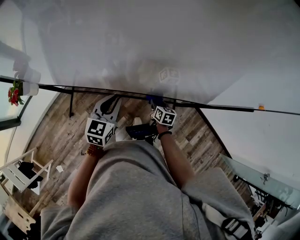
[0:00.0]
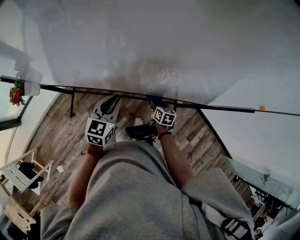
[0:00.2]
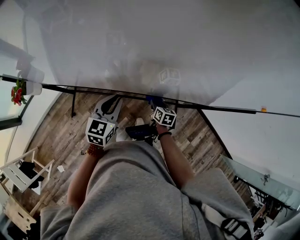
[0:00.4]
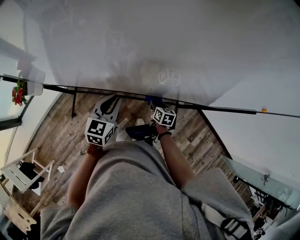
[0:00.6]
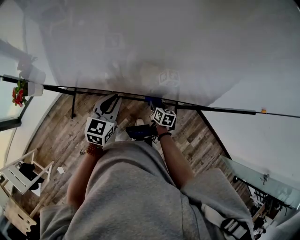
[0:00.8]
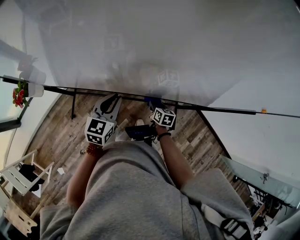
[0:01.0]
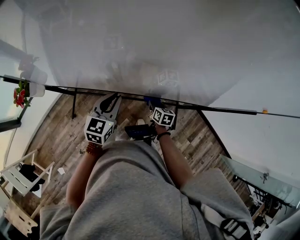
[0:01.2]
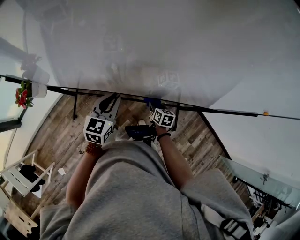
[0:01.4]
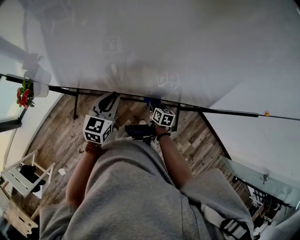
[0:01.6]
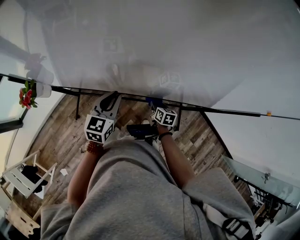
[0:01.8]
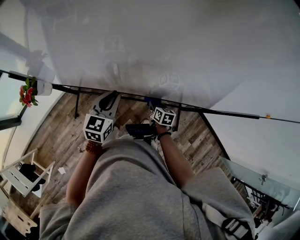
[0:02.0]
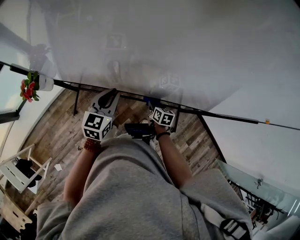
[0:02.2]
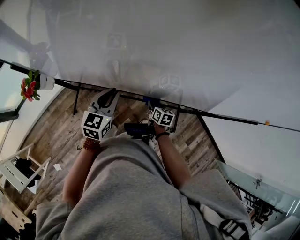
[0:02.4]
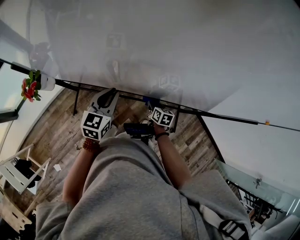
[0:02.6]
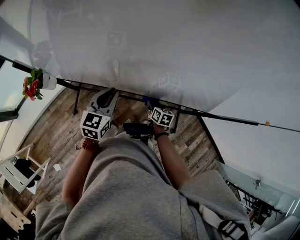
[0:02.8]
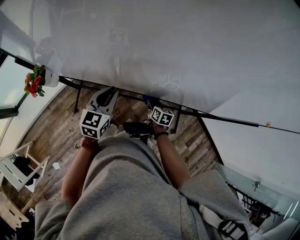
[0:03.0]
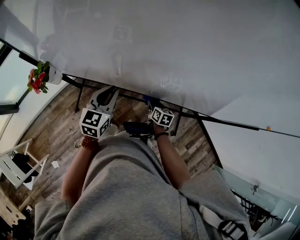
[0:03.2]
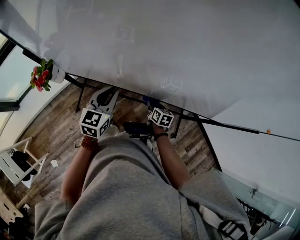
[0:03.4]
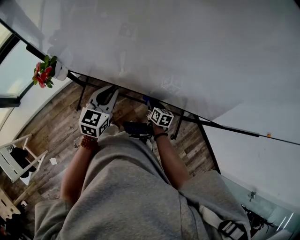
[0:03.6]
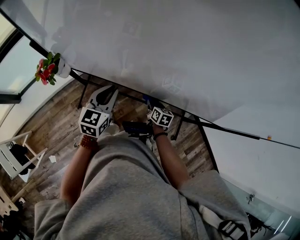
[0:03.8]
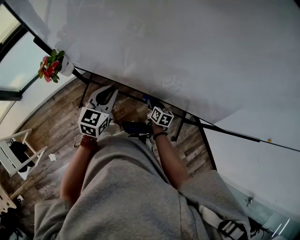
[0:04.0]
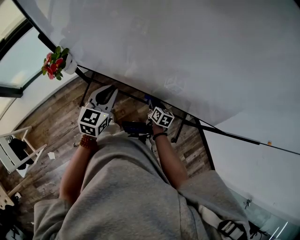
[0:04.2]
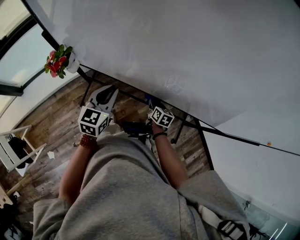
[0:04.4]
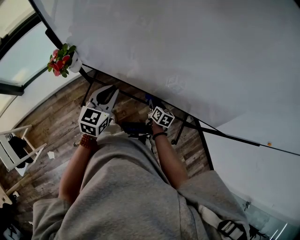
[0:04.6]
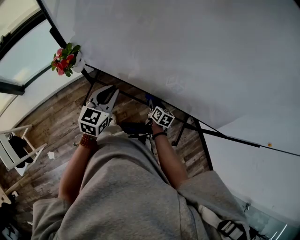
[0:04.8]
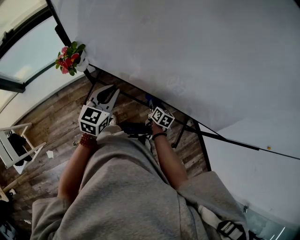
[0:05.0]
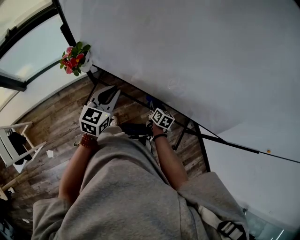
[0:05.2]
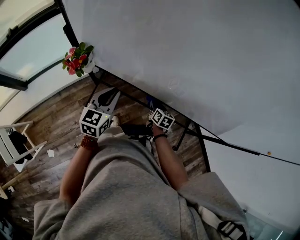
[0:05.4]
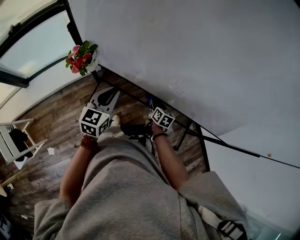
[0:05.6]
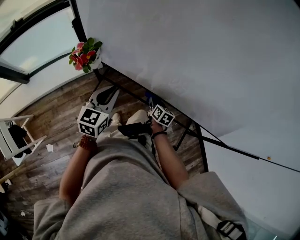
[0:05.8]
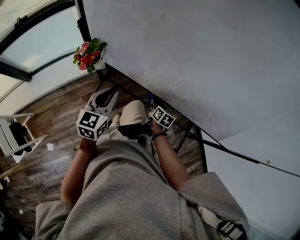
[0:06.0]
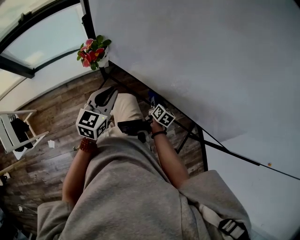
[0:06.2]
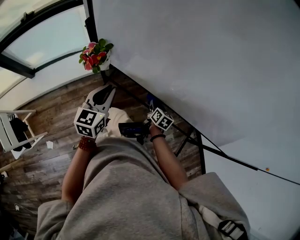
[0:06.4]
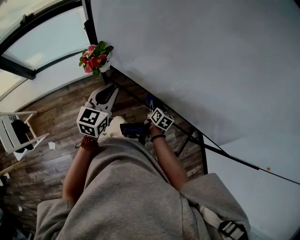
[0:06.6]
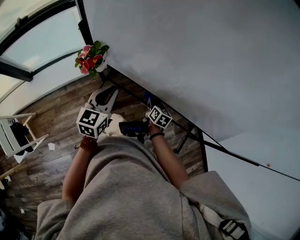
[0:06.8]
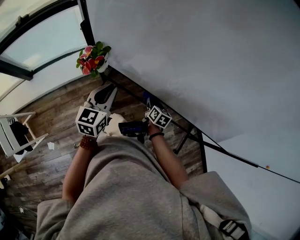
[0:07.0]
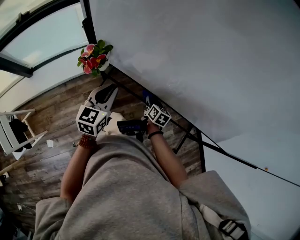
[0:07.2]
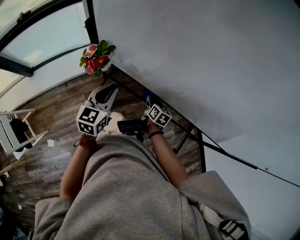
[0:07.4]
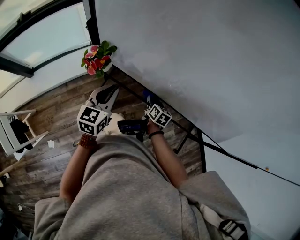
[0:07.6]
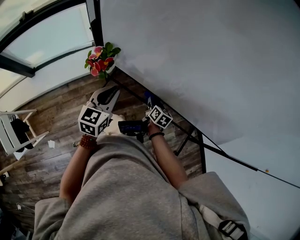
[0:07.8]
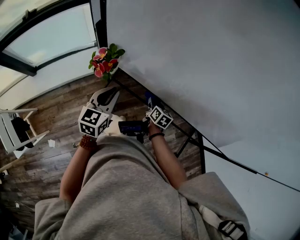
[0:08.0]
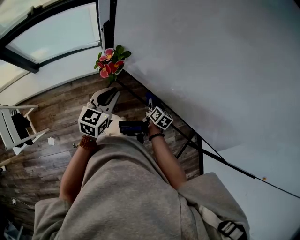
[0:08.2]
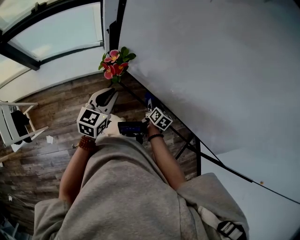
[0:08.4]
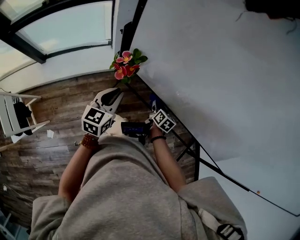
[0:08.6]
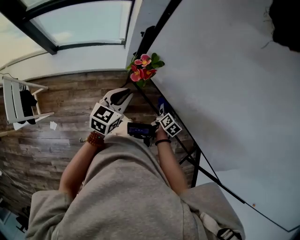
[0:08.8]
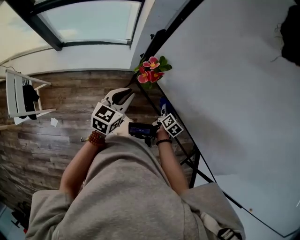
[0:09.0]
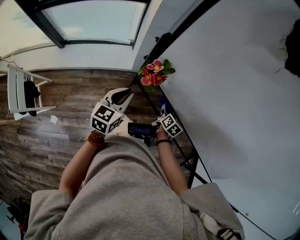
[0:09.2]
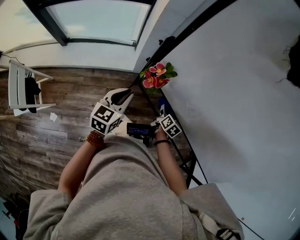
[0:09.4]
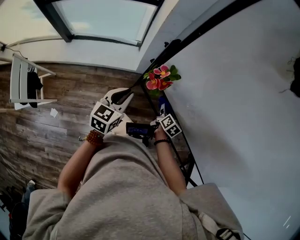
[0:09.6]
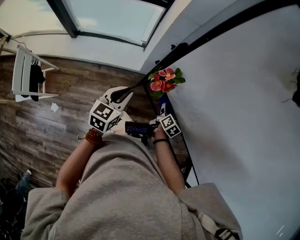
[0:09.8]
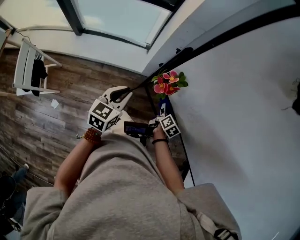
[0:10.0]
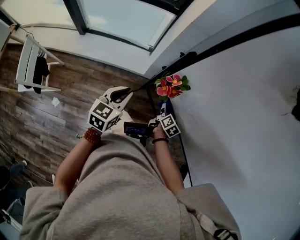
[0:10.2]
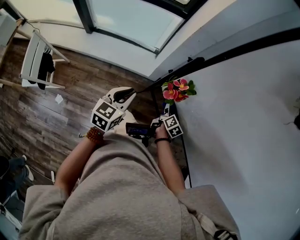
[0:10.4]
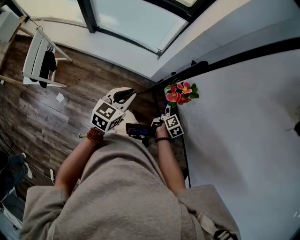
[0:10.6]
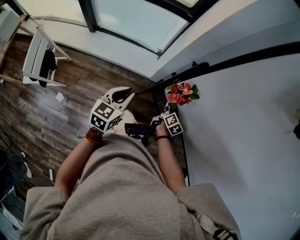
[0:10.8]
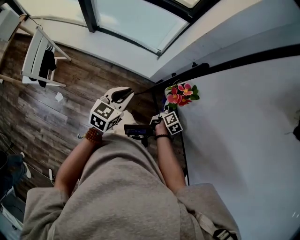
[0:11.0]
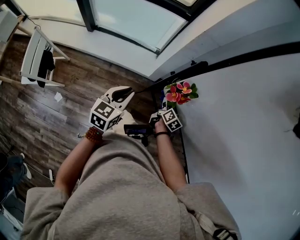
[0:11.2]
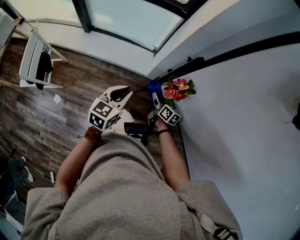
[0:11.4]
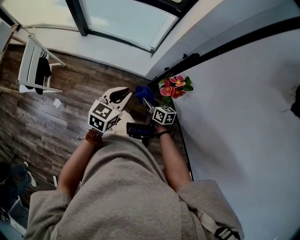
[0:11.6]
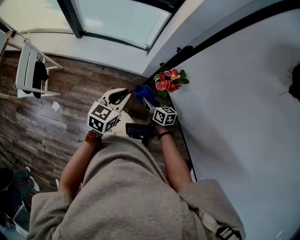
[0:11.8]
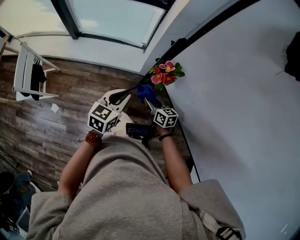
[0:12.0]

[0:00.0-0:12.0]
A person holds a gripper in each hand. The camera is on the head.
0:00.0 to 0:01.6: The two grippers go roughly 10 cm to the left.
0:01.6 to 0:03.0: Both grippers travel together to the left, roughly 10 cm.
0:03.0 to 0:04.4: Both grippers move to the left, about 10 cm.
0:04.4 to 0:06.0: The grippers both shift to the left by about 10 cm.
0:06.0 to 0:07.6: The right gripper goes roughly 5 cm to the left. Meanwhile the left gripper shifts by some 5 cm.
0:07.6 to 0:09.0: The two grippers go some 10 cm to the left.
0:09.0 to 0:10.4: The left gripper shifts roughly 10 cm to the left; the right gripper moves to the left and forward, about 10 cm.
0:10.4 to 0:12.0: The right gripper ends up some 10 cm from where it was, and turns by about 50 degrees.

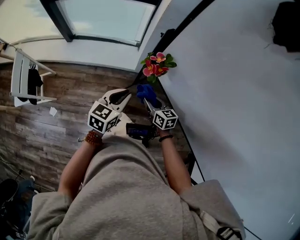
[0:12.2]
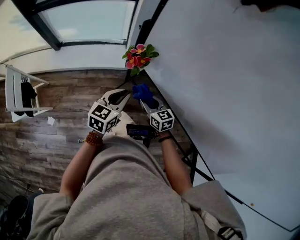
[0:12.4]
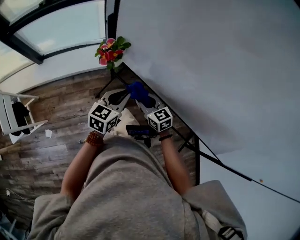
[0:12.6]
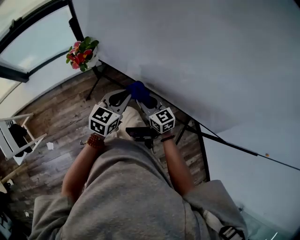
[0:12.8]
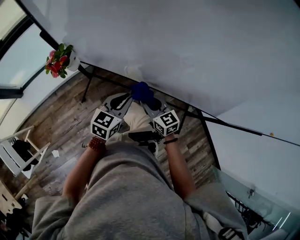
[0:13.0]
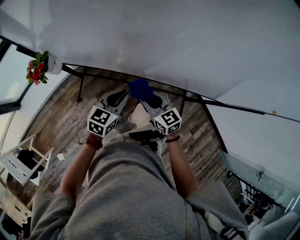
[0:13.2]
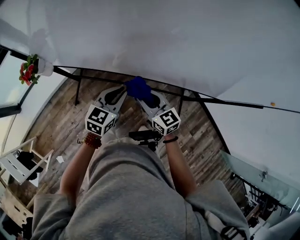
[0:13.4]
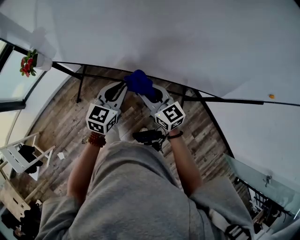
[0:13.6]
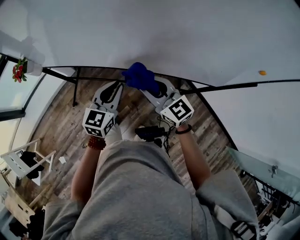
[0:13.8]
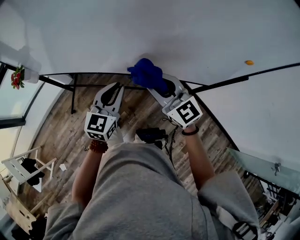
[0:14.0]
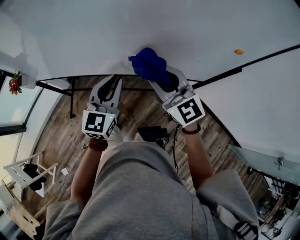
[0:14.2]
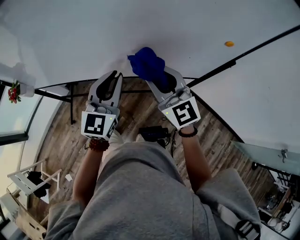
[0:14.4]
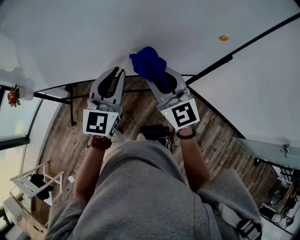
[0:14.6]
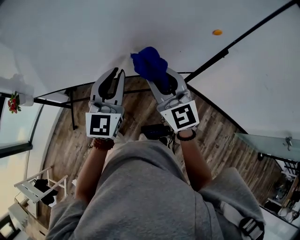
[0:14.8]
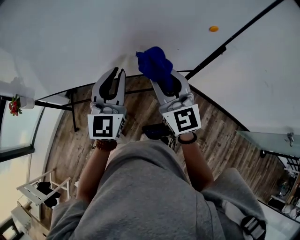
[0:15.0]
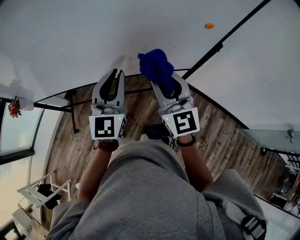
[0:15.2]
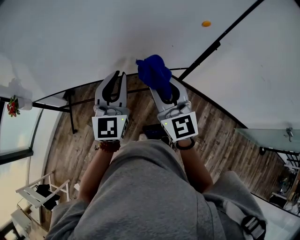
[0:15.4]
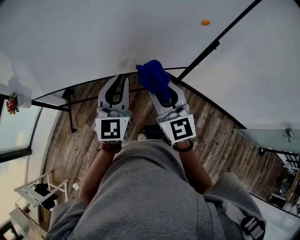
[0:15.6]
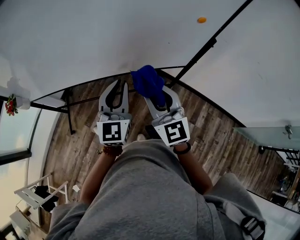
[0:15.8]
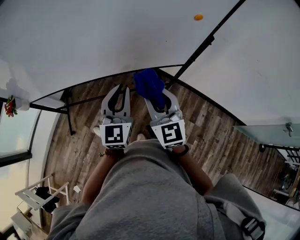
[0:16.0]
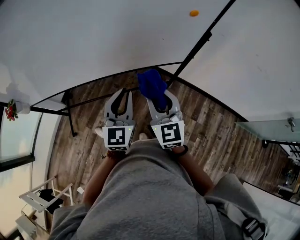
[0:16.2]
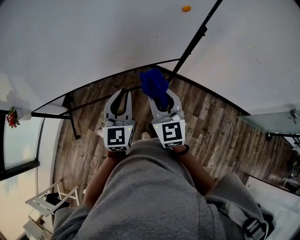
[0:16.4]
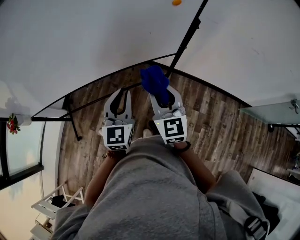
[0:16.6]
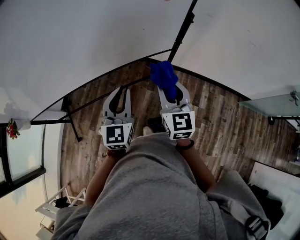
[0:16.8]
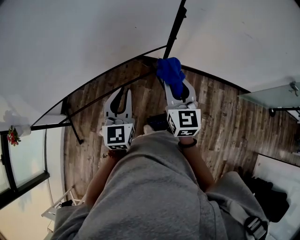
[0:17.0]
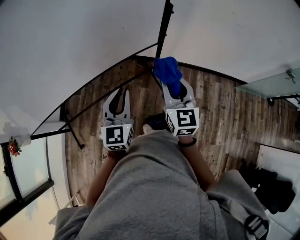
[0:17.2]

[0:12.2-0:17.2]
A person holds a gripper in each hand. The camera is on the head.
0:12.2 to 0:13.8: The pair of grippers is taken about 50 cm. The right gripper swivels roughly 40 degrees. The left gripper changes its angle by approximately 40 degrees.
0:13.8 to 0:15.6: The right gripper is displaced to the right, backward and upward by roughly 25 cm, and turns by some 40 degrees. The left gripper is displaced to the right and upward by roughly 20 cm, and swivels approximately 20 degrees.
0:15.6 to 0:17.2: The right gripper moves approximately 20 cm, and turns by about 40 degrees. The left gripper changes place by about 15 cm, and rotates some 20 degrees.

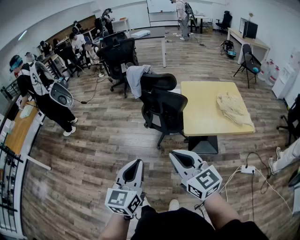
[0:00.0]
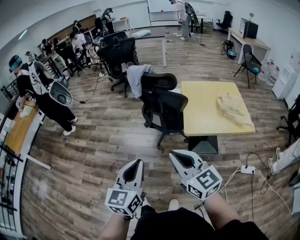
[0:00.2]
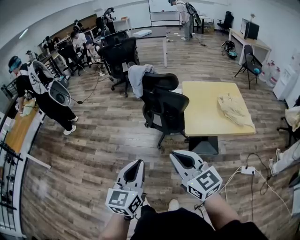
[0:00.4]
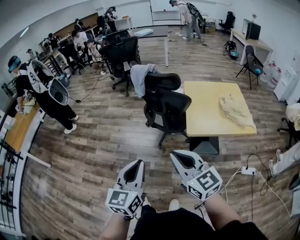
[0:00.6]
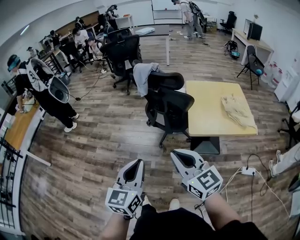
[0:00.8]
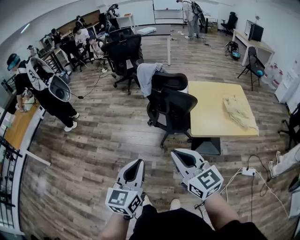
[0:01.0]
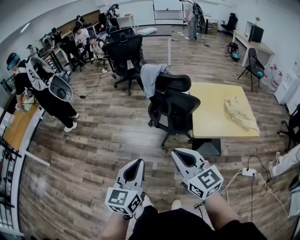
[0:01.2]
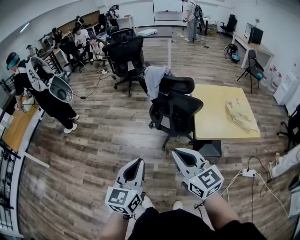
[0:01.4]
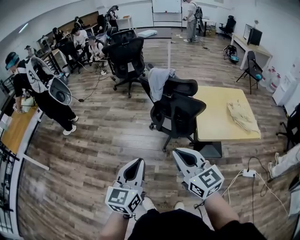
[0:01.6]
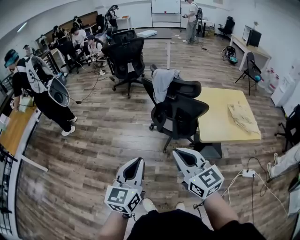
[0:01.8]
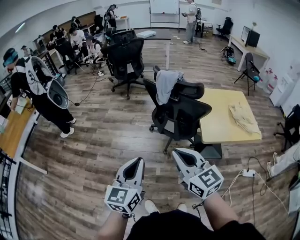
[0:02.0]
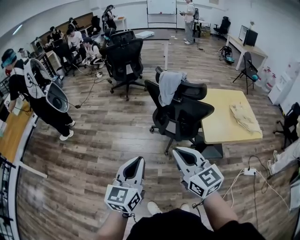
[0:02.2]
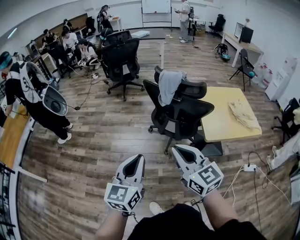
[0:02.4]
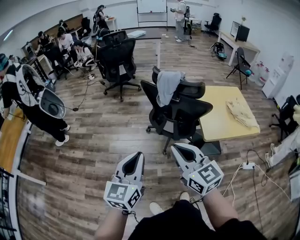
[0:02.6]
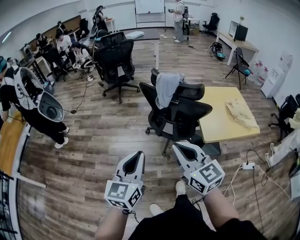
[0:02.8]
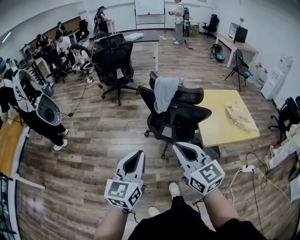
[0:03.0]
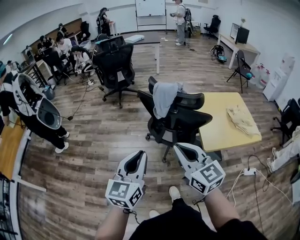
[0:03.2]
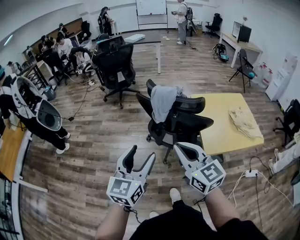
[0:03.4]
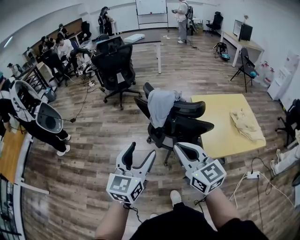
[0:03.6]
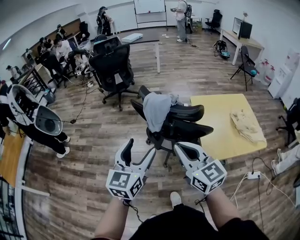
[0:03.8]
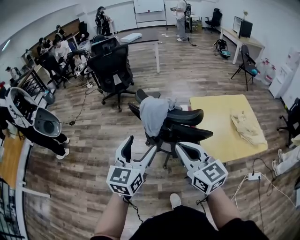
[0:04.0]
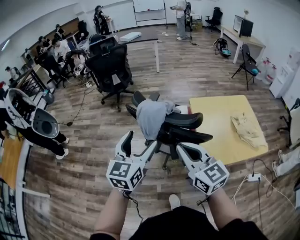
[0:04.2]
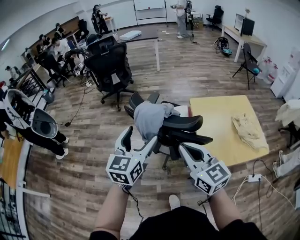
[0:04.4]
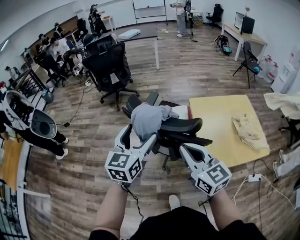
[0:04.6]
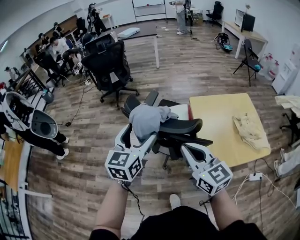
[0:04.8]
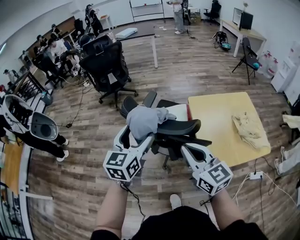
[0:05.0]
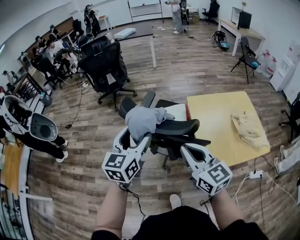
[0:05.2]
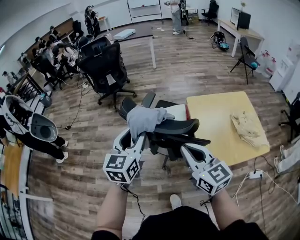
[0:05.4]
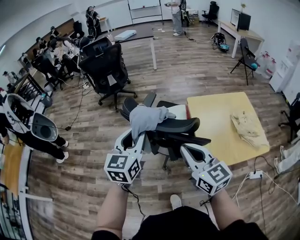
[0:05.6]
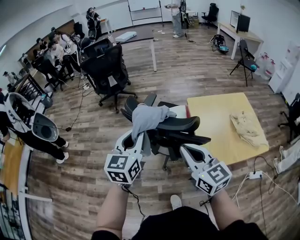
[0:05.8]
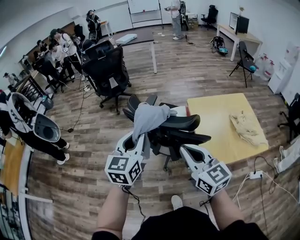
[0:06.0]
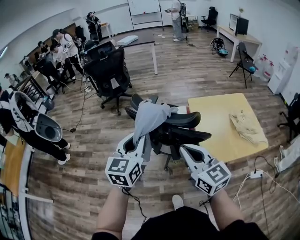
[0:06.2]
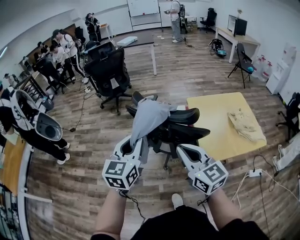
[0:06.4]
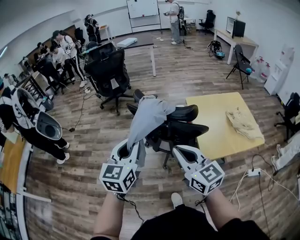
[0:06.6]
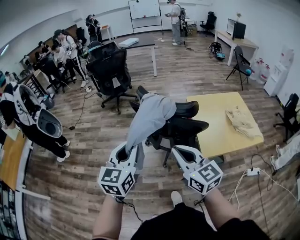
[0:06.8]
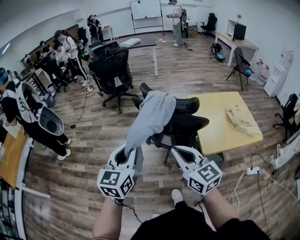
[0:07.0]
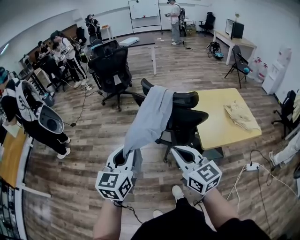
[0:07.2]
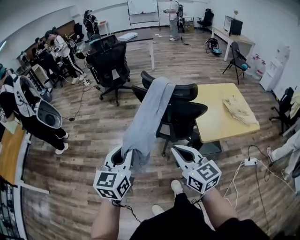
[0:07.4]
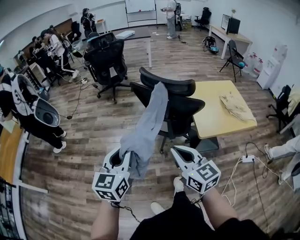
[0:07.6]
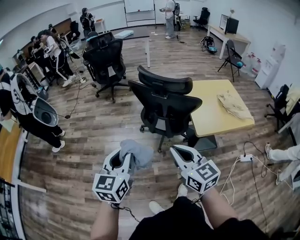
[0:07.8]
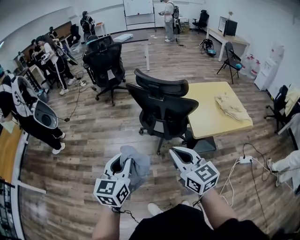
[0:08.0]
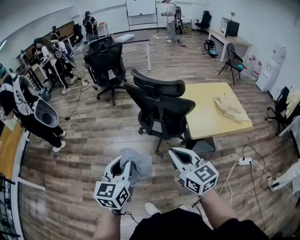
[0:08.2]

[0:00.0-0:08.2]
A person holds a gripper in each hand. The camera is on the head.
0:00.0 to 0:01.6: The two grippers go roughly 15 cm to the left and forward.
0:01.6 to 0:03.2: Both grippers travel together forward, some 15 cm.
0:03.2 to 0:05.0: The grippers both shift forward and to the right by approximately 30 cm. The left gripper opens its fingers.
0:05.0 to 0:06.6: The two grippers go about 15 cm backward and to the left. The left gripper closes its fingers.
0:06.6 to 0:08.2: Both grippers travel together backward, some 20 cm.
